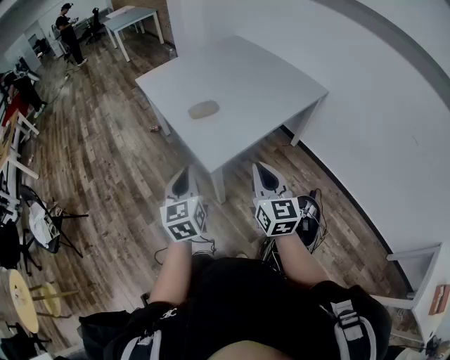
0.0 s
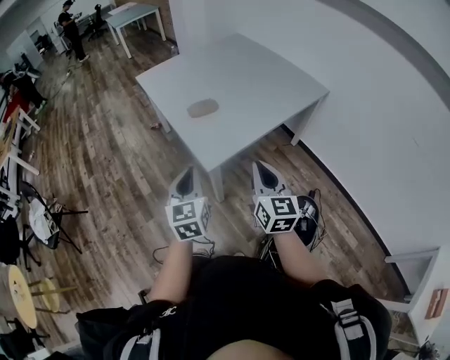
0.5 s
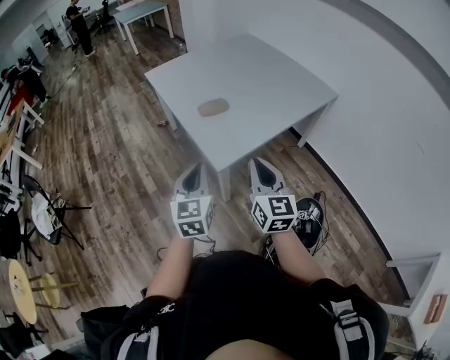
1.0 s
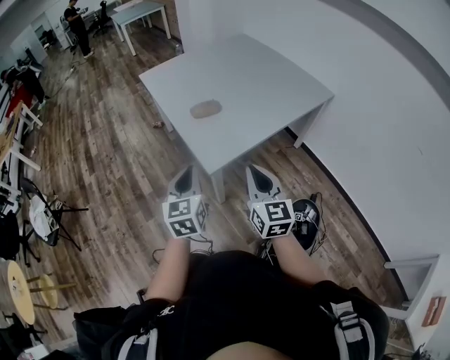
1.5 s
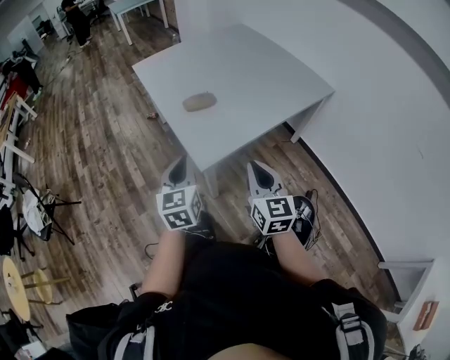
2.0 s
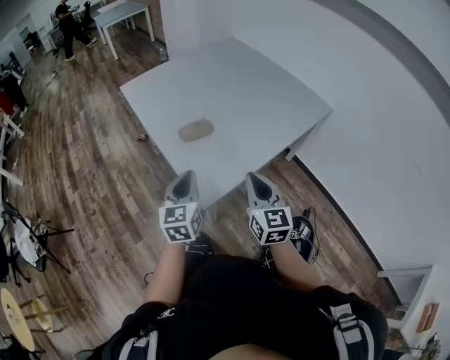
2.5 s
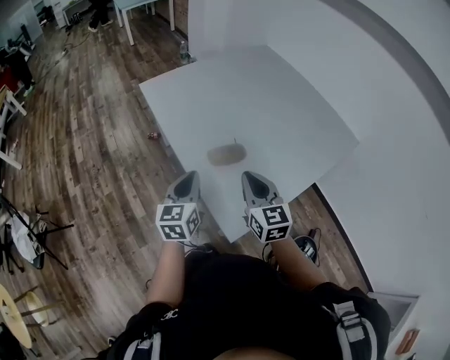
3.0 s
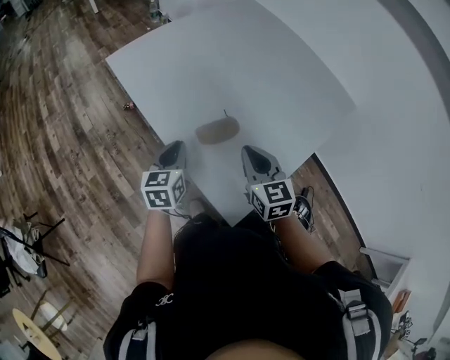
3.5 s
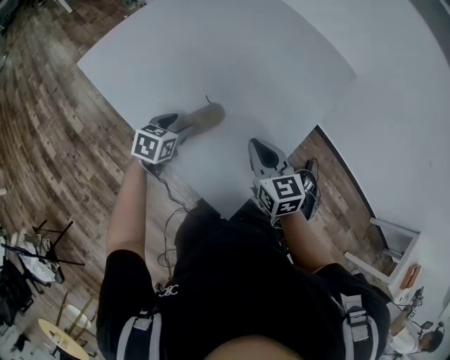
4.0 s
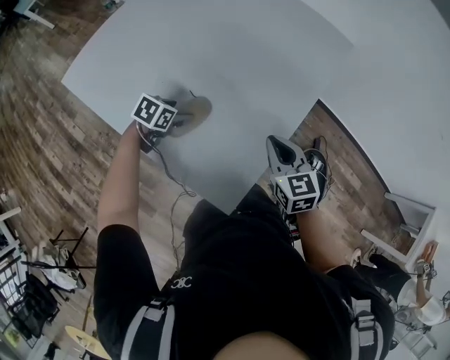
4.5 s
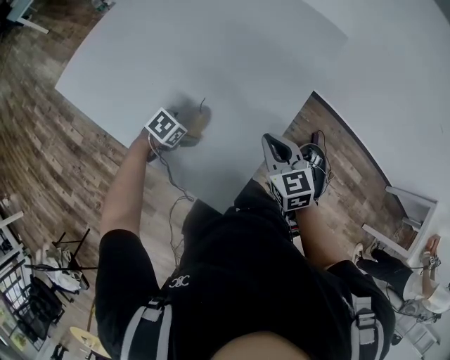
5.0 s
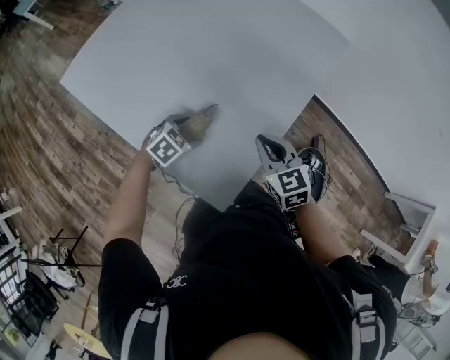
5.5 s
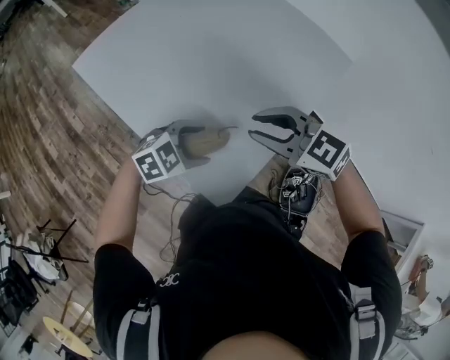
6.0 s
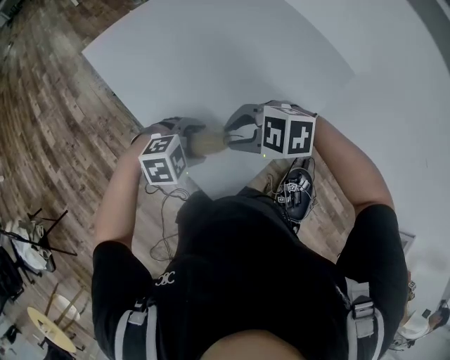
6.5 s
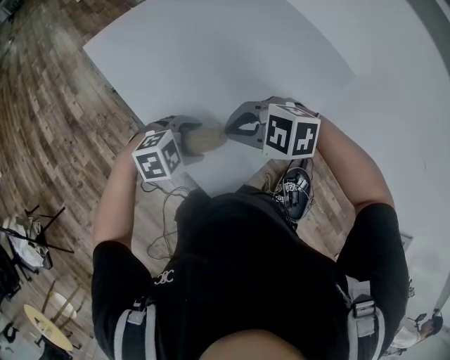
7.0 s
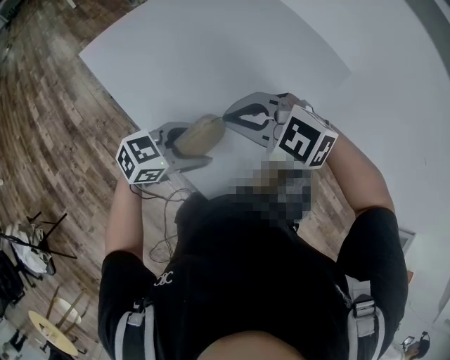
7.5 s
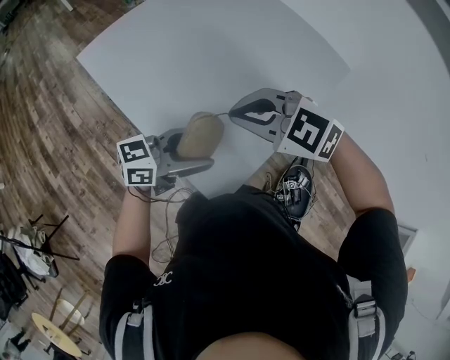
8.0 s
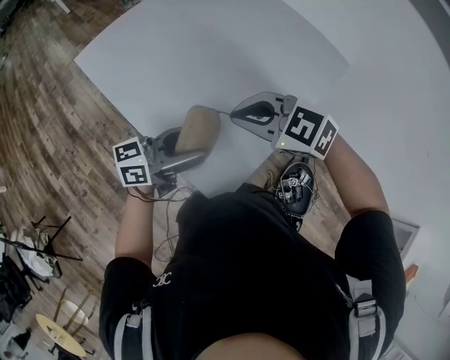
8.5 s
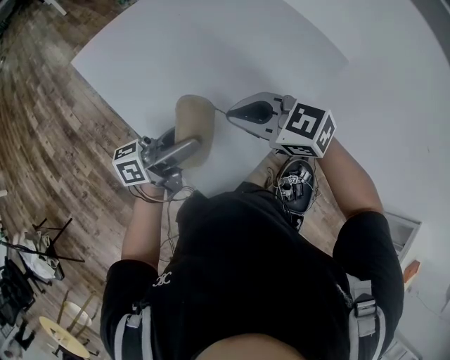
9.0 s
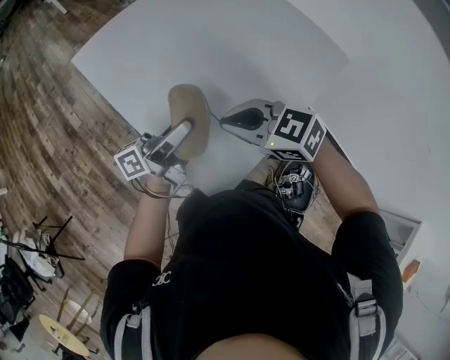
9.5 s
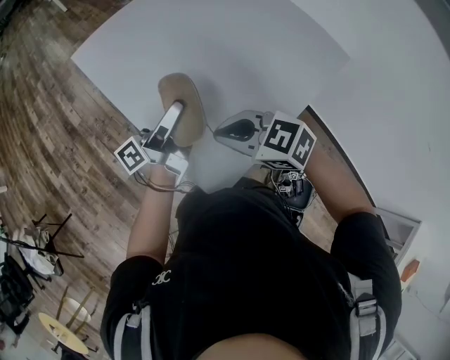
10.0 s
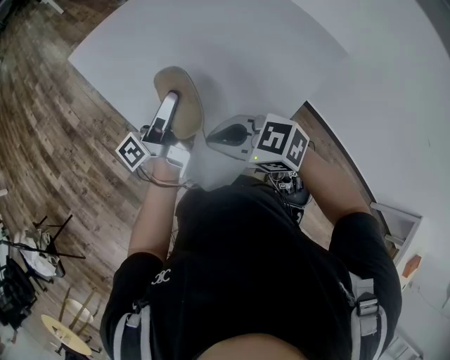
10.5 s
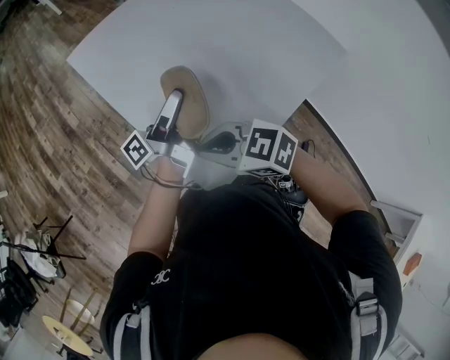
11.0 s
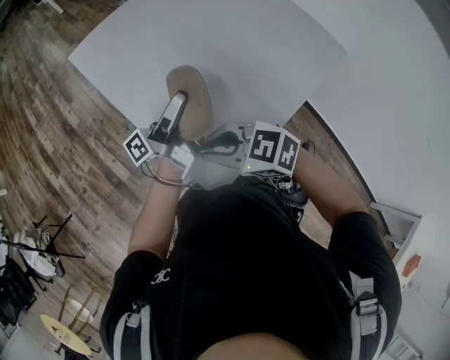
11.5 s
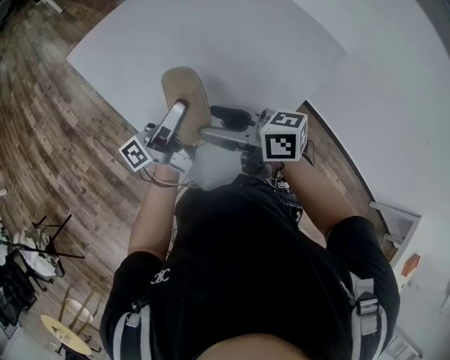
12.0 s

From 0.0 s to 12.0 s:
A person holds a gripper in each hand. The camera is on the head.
From 0.0 s to 2.0 s: Both grippers move forward, roughly 5 cm.
From 2.0 s to 4.0 s: The pair of grippers is taken approximately 40 cm. The left gripper turns by some 60 degrees, and opens.
From 4.0 s to 6.0 s: The left gripper shifts by some 20 cm, and twists about 40 degrees clockwise, seen from behind; the right gripper goes approximately 10 cm upward, and turns by some 50 degrees.
From 6.0 s to 8.0 s: The left gripper shifts about 10 cm upward, and tips its fingers upward by some 40 degrees. The right gripper changes place by about 5 cm.
From 8.0 s to 10.0 s: The right gripper is displaced downward by some 5 cm, and turns by about 20 degrees, while the left gripper ends up about 10 cm from where it was, and turns by about 60 degrees.
From 10.0 s to 12.0 s: The right gripper turns by roughly 40 degrees, and opens its fingers.

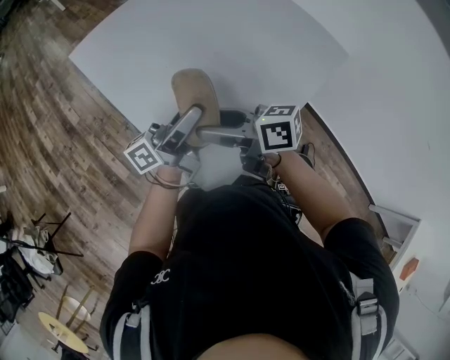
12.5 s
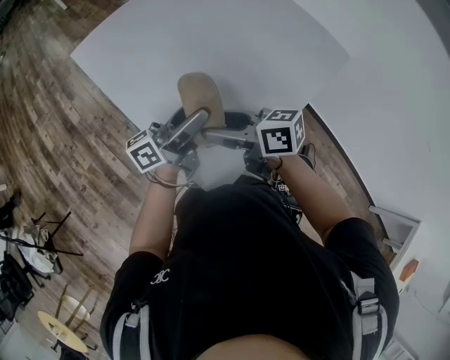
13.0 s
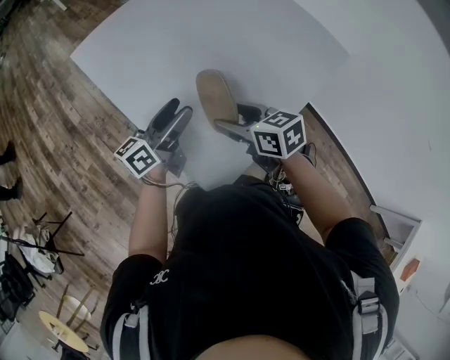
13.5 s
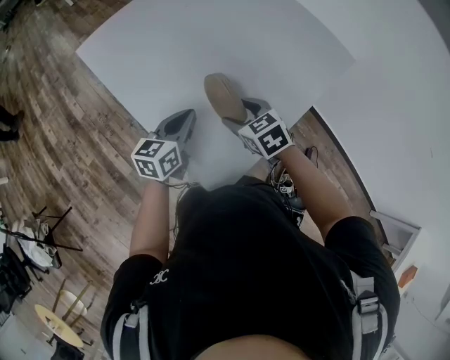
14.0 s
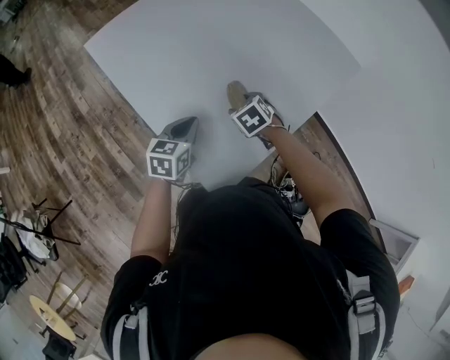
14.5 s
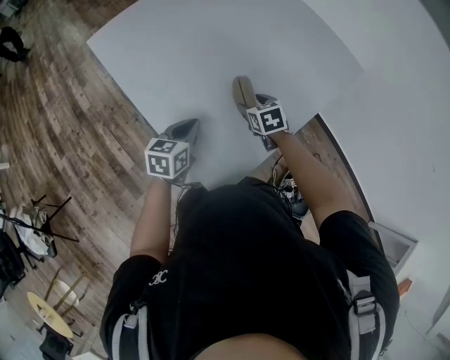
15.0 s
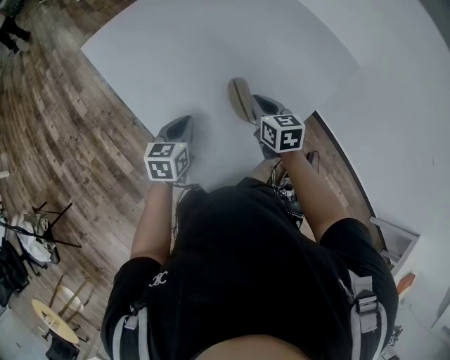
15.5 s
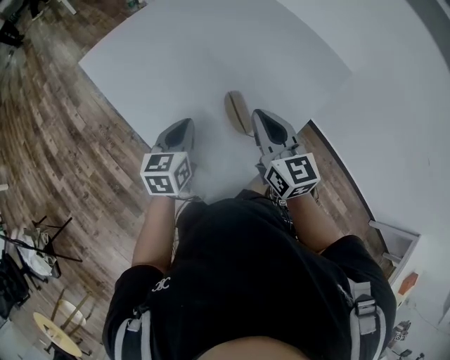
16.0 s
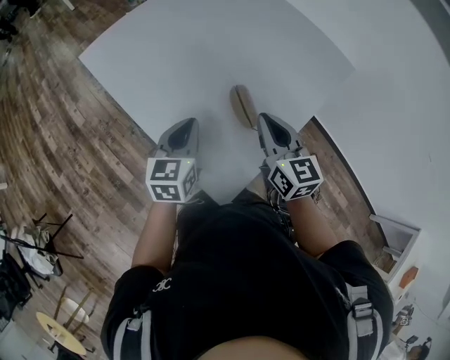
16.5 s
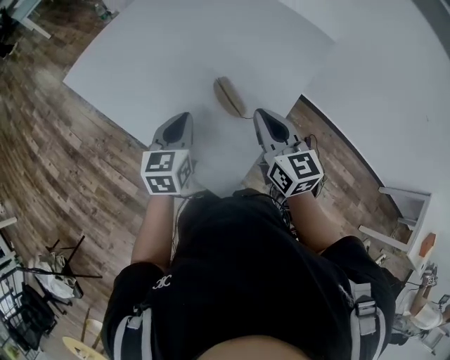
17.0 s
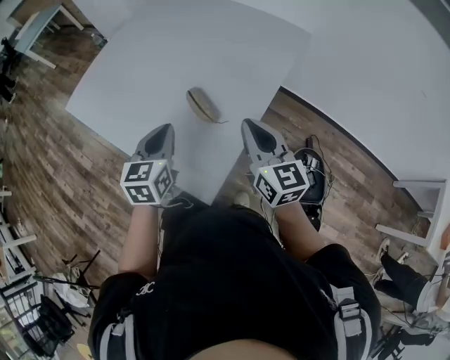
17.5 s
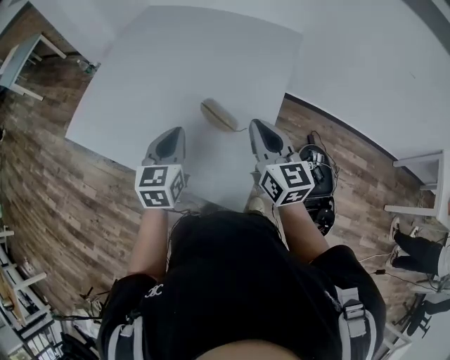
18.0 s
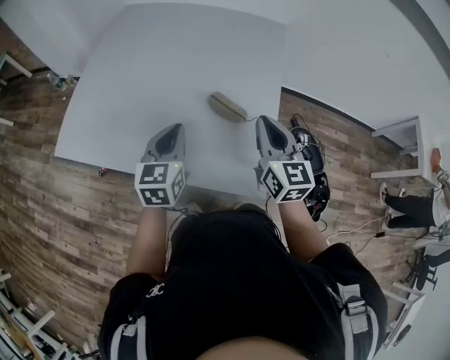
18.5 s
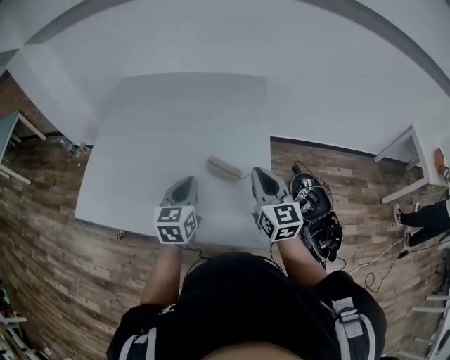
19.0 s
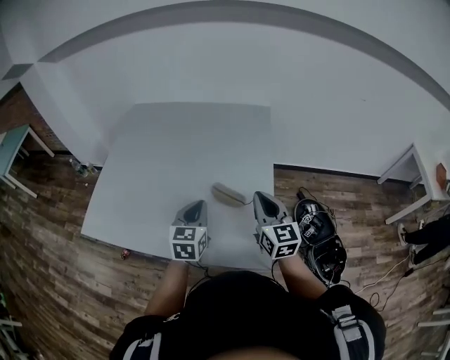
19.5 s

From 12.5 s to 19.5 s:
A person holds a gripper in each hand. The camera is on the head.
From 12.5 s to 14.5 s: The left gripper shifts roughly 15 cm downward, angles its fingers downward, by about 60 degrees, and closes, while the right gripper moves downward, to the right and forward, roughly 20 cm, and tilts its fingers some 50 degrees downward.
From 14.5 s to 16.0 s: The right gripper moves upward, roughly 20 cm, tips its fingers upward by approximately 50 degrees, and closes its fingers; the left gripper heads upward, covering approximately 5 cm.
From 16.0 s to 17.5 s: The right gripper travels to the right and backward by roughly 15 cm, while the left gripper moves to the right, backward and upward, about 10 cm.
From 17.5 s to 19.5 s: The right gripper ends up some 15 cm from where it was, and turns by some 30 degrees, while the left gripper rotates about 30 degrees.

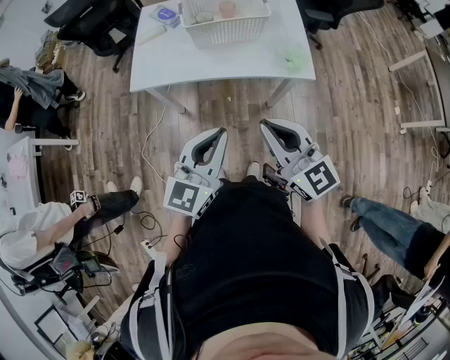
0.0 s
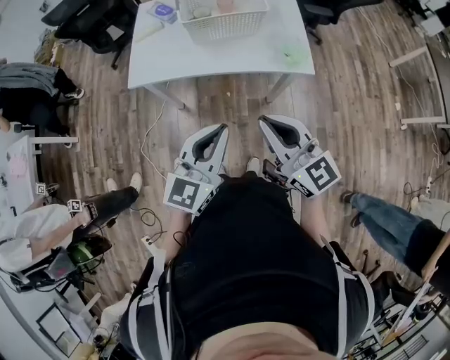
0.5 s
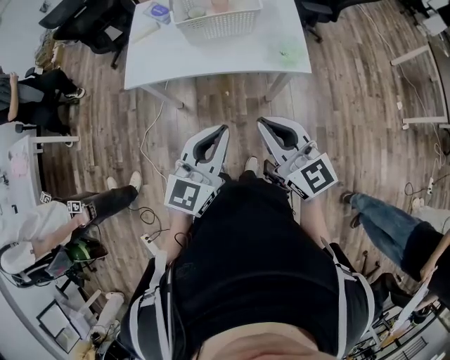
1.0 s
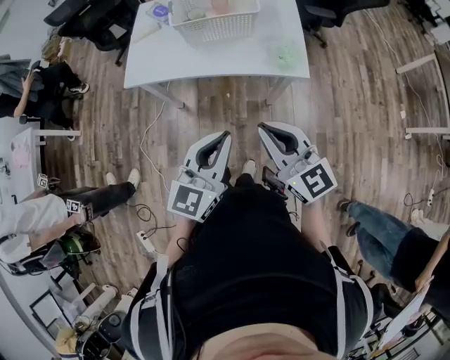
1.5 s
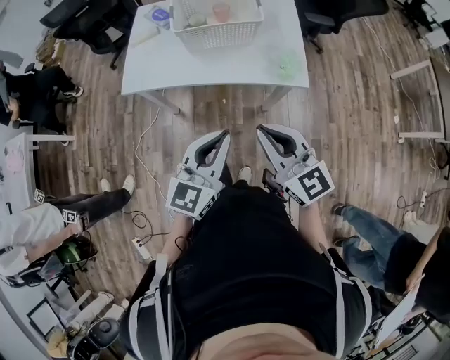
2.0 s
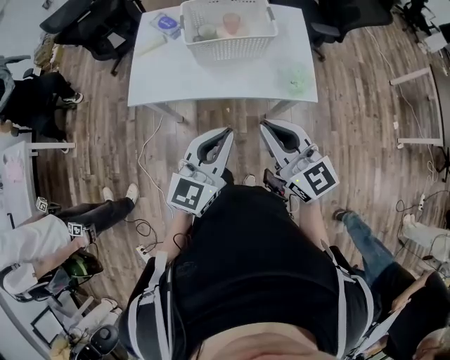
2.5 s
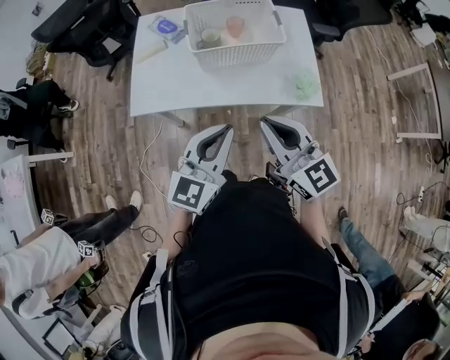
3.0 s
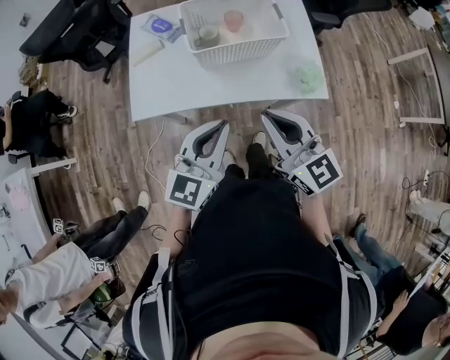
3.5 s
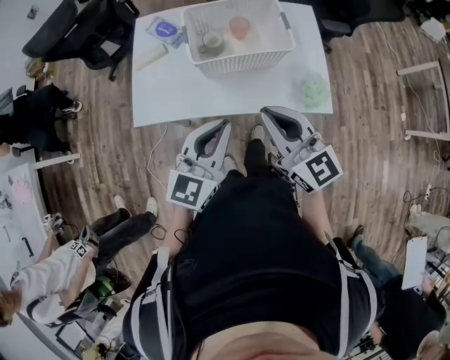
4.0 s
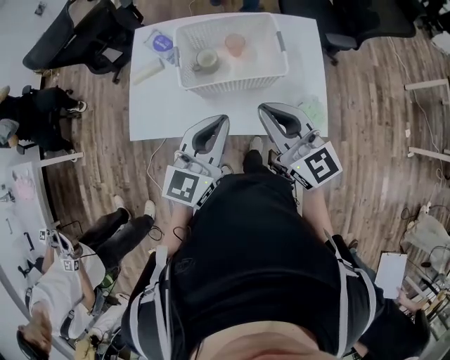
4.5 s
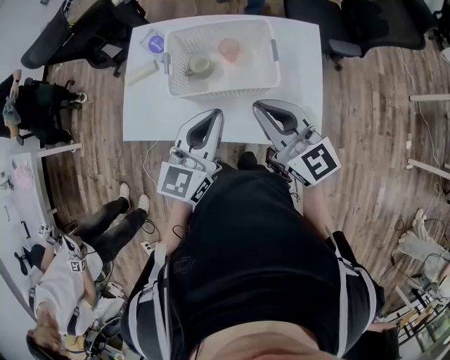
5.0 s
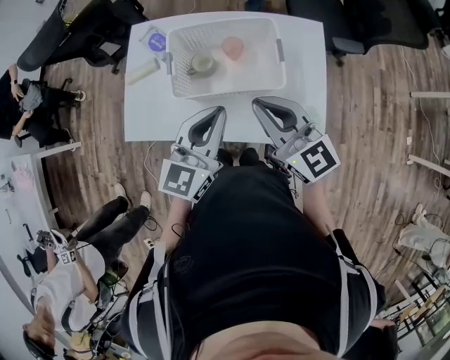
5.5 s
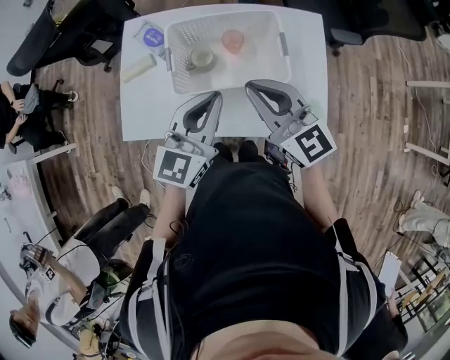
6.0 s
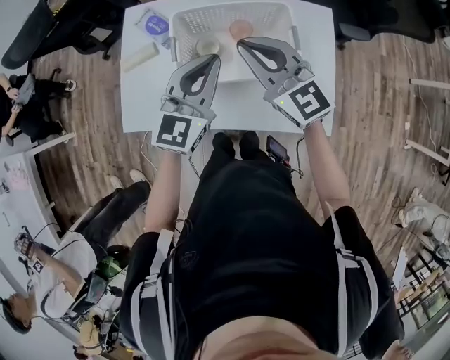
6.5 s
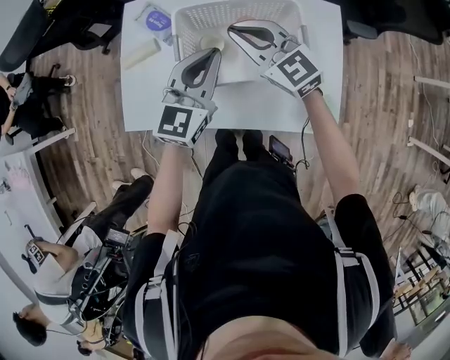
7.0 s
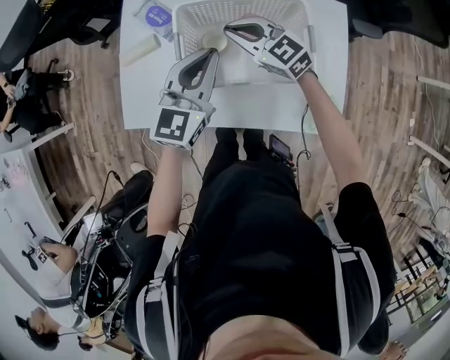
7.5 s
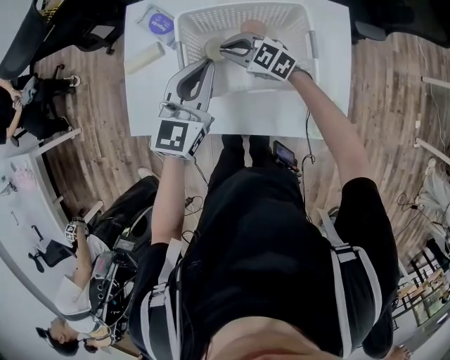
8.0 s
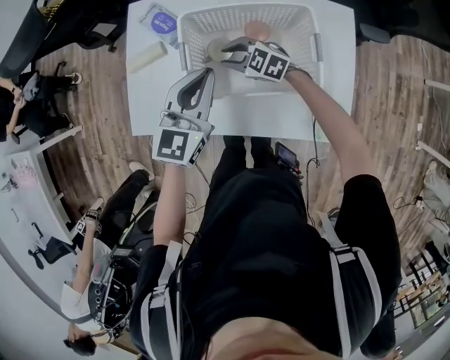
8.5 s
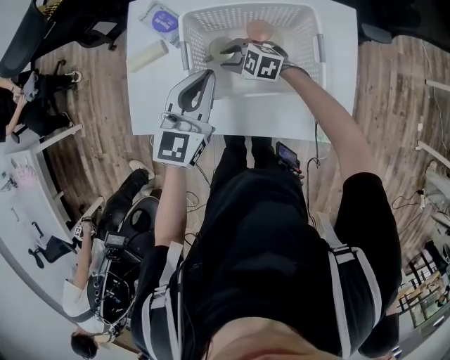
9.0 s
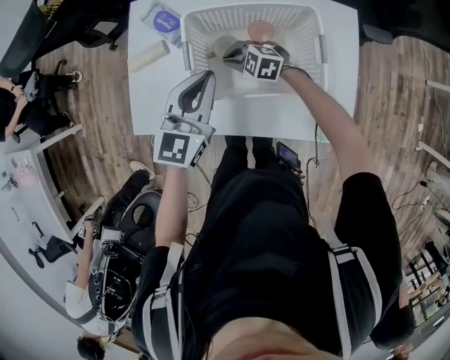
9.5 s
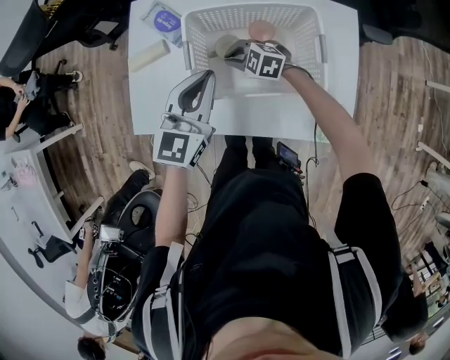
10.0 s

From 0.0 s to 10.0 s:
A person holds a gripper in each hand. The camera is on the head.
From 0.0 s to 2.0 s: The grippers both shift to the right by roughly 5 cm.
From 2.0 s to 4.0 s: The left gripper shifts some 25 cm forward and to the left. Meanwhile the right gripper goes roughly 20 cm forward.
From 4.0 s to 6.0 s: The grippers both shift forward by some 20 cm.
From 6.0 s to 8.0 s: The left gripper travels forward and downward by some 15 cm. Meanwhile the right gripper heads downward, forward and to the left, covering roughly 30 cm, and rotates some 40 degrees.
From 8.0 s to 10.0 s: The right gripper shifts approximately 10 cm downward, turns by roughly 20 degrees, and opens, then closes once more.
